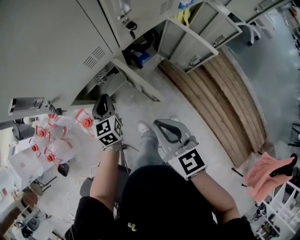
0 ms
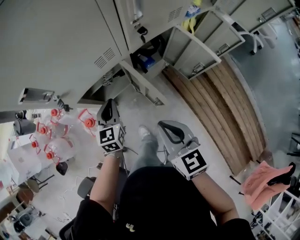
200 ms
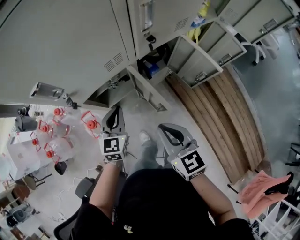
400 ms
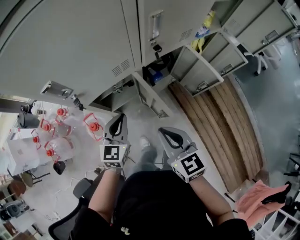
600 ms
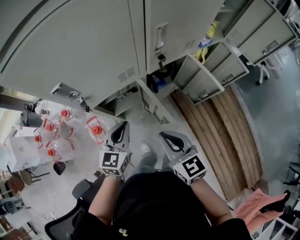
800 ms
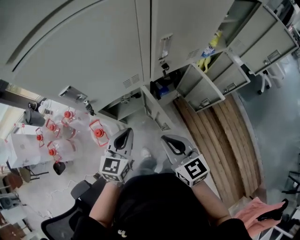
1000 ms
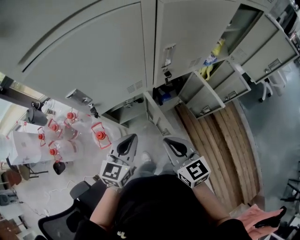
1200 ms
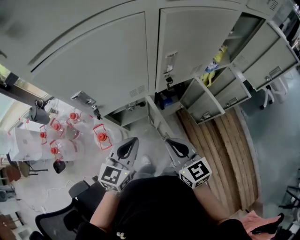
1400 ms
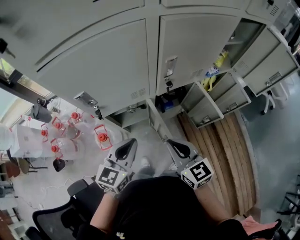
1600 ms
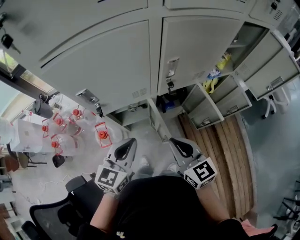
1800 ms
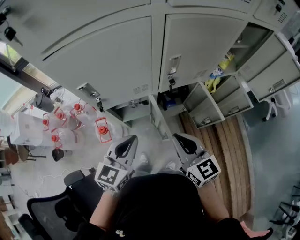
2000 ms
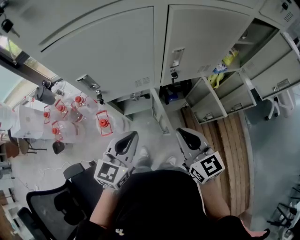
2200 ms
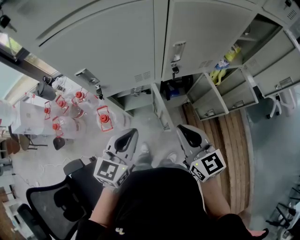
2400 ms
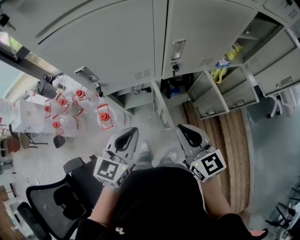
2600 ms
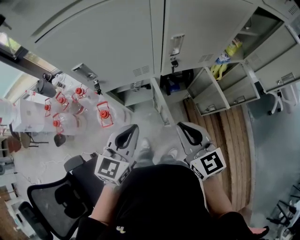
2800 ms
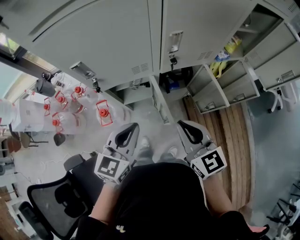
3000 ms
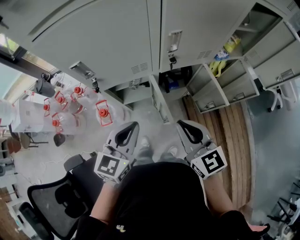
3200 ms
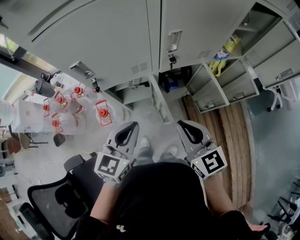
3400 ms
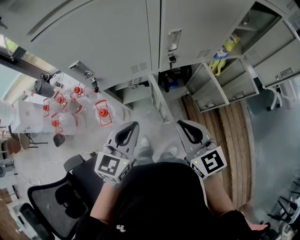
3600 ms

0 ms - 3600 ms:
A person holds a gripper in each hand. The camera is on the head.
0 ms - 1800 ms: The left gripper travels upward and backward by some 25 cm, while the right gripper heads upward, covering about 10 cm, and swivels some 20 degrees.
1800 ms - 3600 ms: The grippers make only small movements.

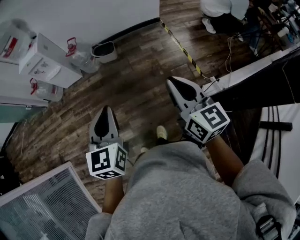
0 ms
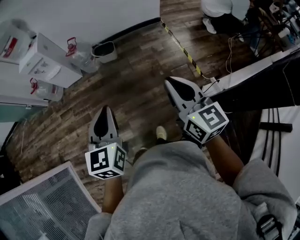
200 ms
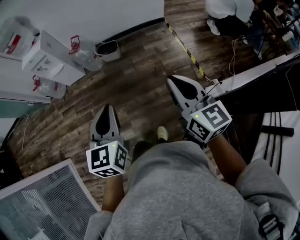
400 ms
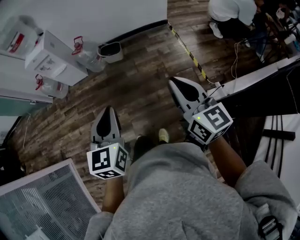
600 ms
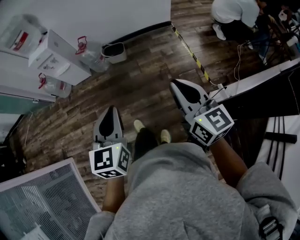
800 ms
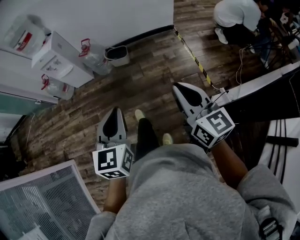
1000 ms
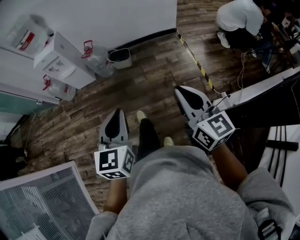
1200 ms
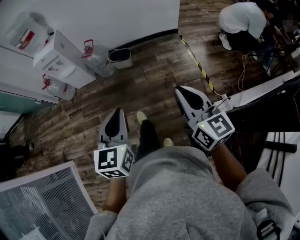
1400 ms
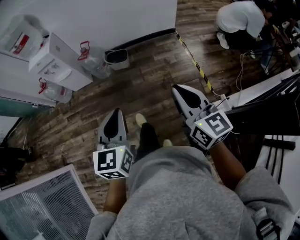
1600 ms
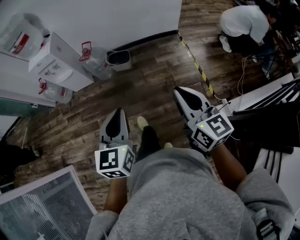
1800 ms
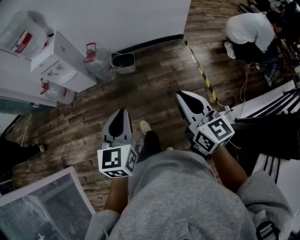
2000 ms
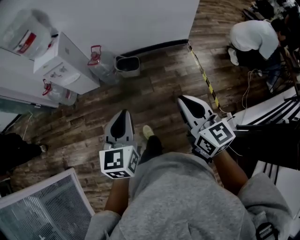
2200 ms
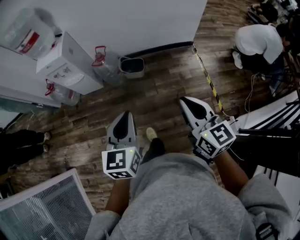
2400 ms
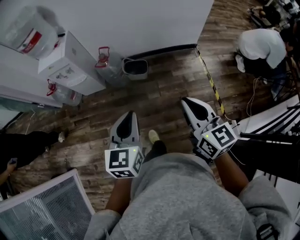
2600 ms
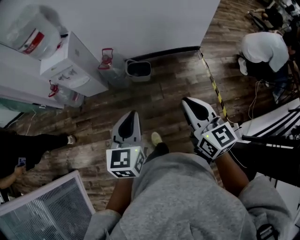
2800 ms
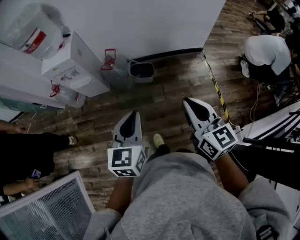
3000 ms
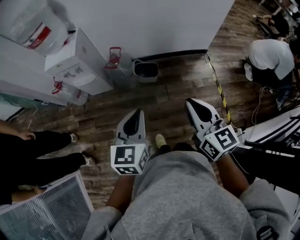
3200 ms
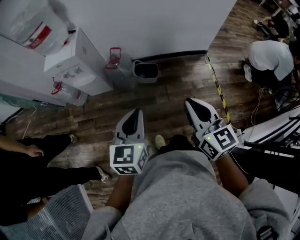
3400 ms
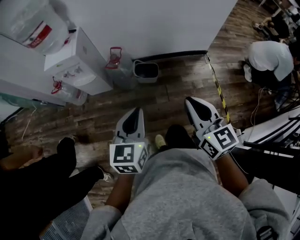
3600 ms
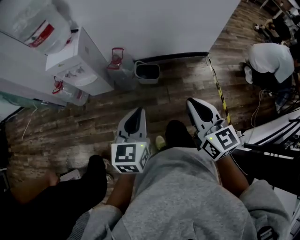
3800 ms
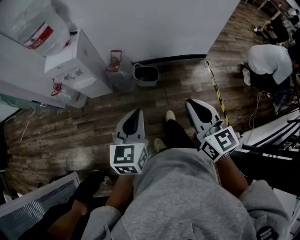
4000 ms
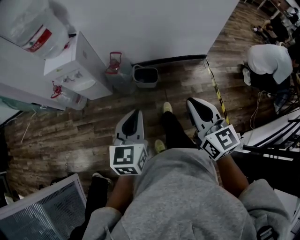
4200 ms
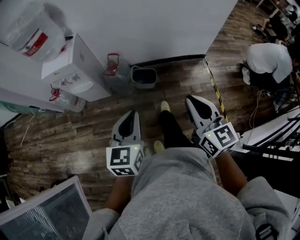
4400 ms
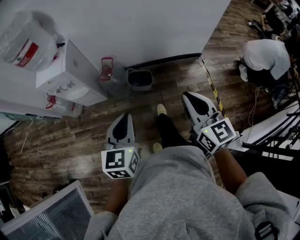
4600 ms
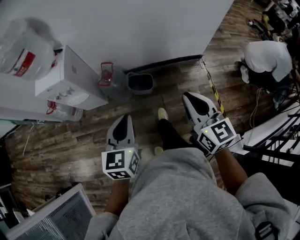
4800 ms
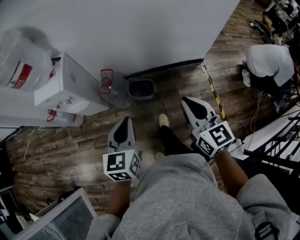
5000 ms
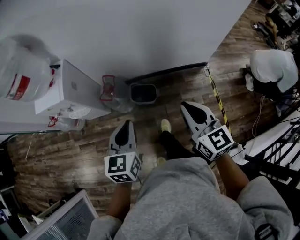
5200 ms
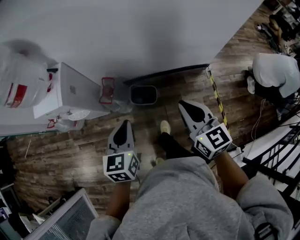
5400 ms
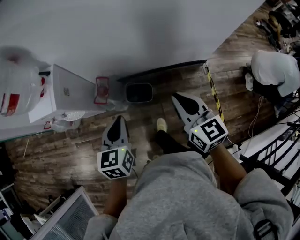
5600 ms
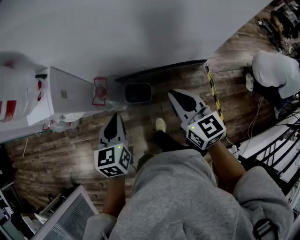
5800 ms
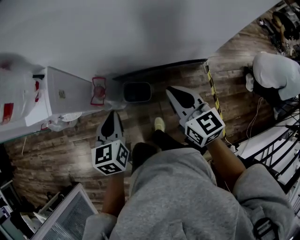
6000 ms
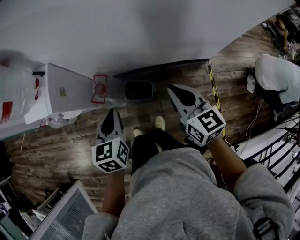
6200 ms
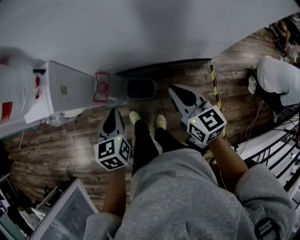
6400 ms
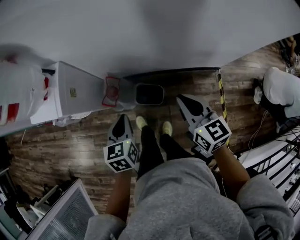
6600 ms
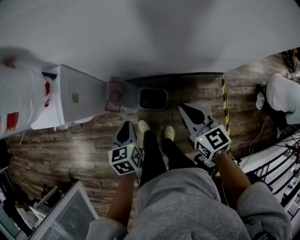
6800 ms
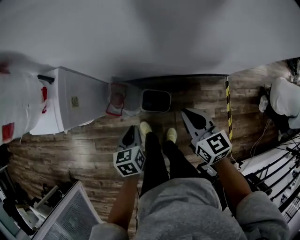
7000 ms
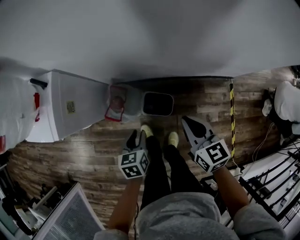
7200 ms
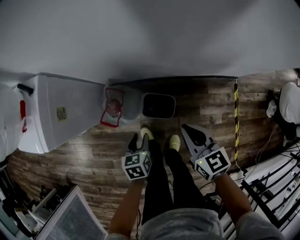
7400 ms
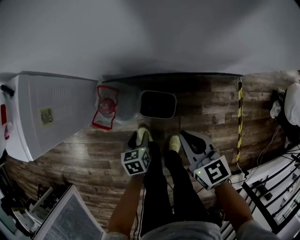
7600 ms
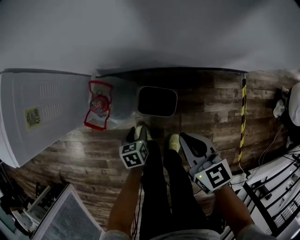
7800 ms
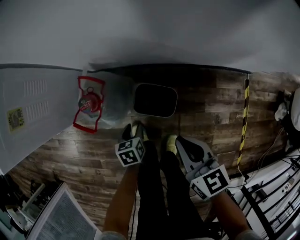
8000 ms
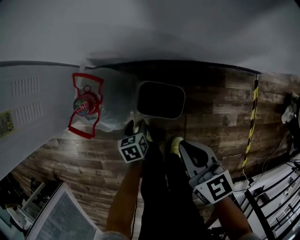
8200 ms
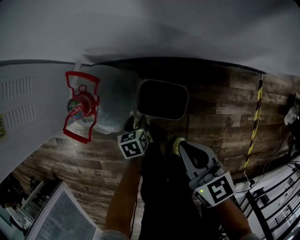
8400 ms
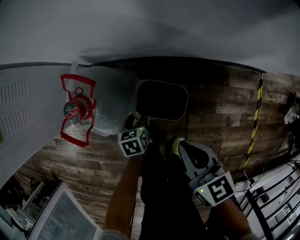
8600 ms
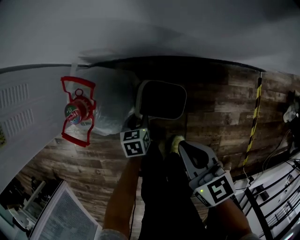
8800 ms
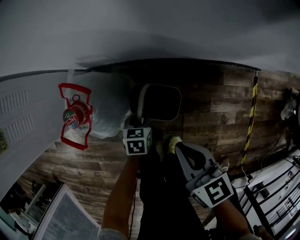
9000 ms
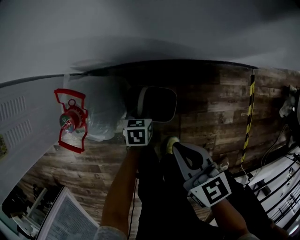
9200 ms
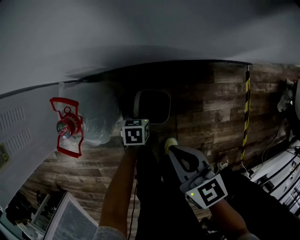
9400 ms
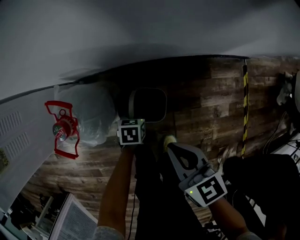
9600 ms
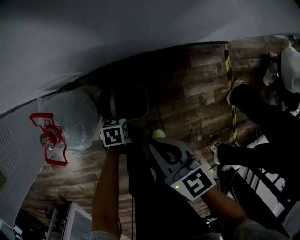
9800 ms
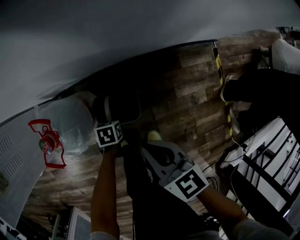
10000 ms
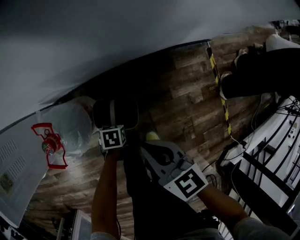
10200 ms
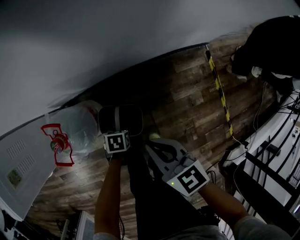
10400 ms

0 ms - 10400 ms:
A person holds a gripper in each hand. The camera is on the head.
0 ms - 1400 ms: There are only small adjustments of the grippers.
1400 ms - 3000 ms: The right gripper heads forward and to the left, covering roughly 30 cm. Meanwhile the left gripper moves forward, about 25 cm.
3000 ms - 4400 ms: The grippers both shift forward by some 5 cm.
4400 ms - 6000 ms: The grippers both shift forward by approximately 35 cm.
6000 ms - 7400 ms: The left gripper shifts some 30 cm downward, swivels roughly 20 degrees, and opens up. The right gripper goes some 25 cm downward and forward.
7400 ms - 9000 ms: Both grippers move downward, roughly 25 cm.
9000 ms - 10400 ms: The left gripper shifts by about 10 cm, turns by approximately 30 degrees, and closes up. The right gripper moves upward, some 10 cm.

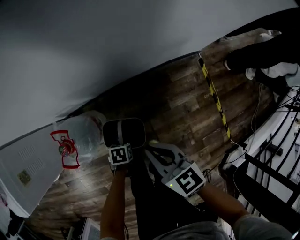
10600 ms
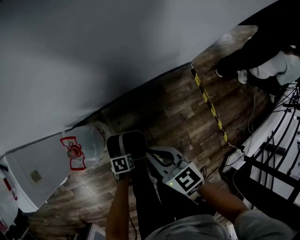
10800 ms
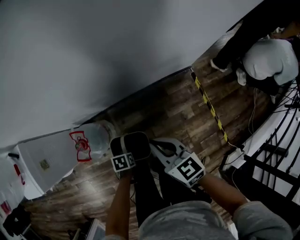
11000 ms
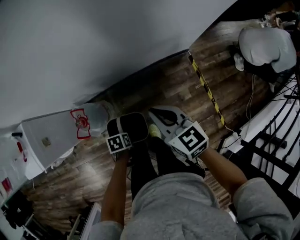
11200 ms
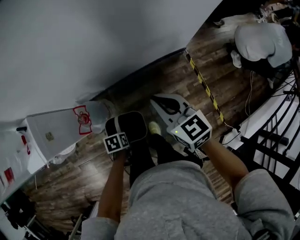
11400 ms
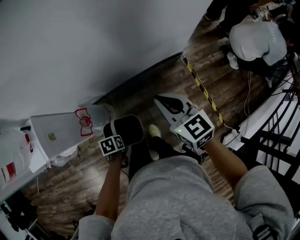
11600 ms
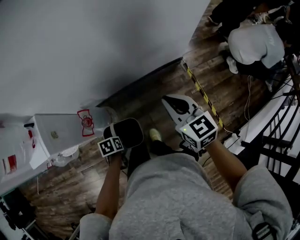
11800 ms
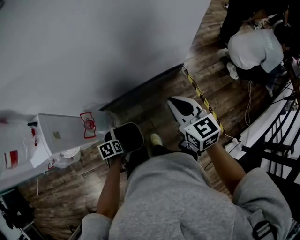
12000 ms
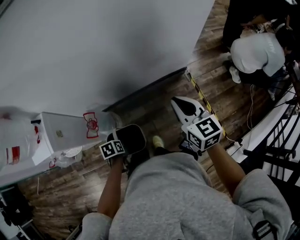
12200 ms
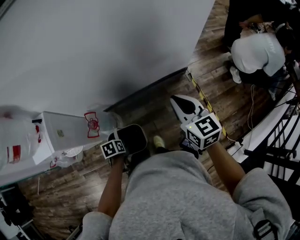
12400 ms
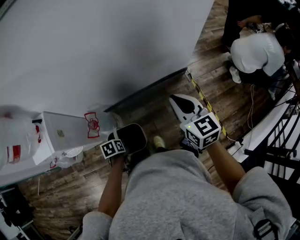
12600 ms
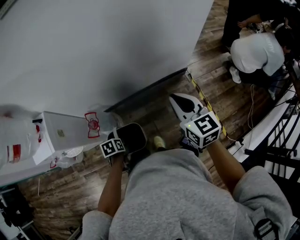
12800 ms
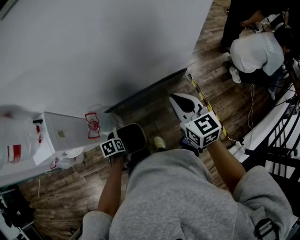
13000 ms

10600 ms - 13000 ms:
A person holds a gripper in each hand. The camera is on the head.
10600 ms - 11800 ms: The grippers both shift upward by some 30 cm.
11800 ms - 13000 ms: The grippers move only a little.

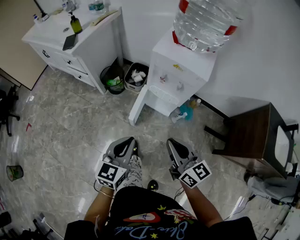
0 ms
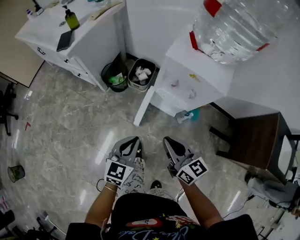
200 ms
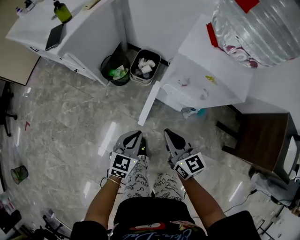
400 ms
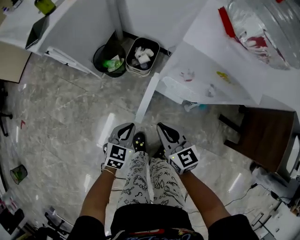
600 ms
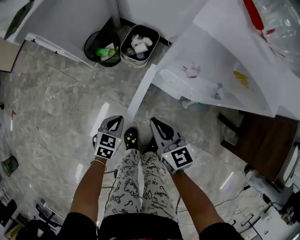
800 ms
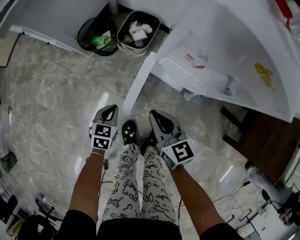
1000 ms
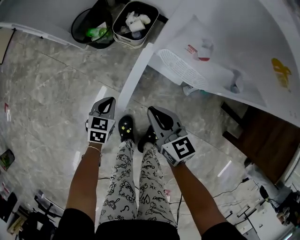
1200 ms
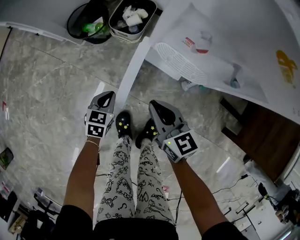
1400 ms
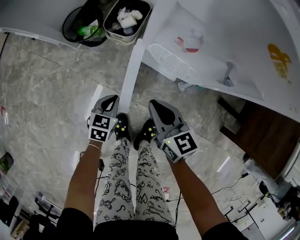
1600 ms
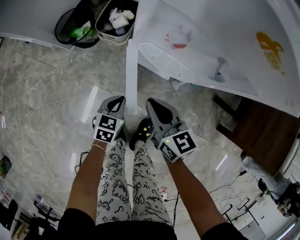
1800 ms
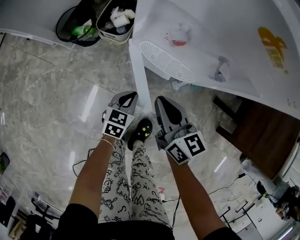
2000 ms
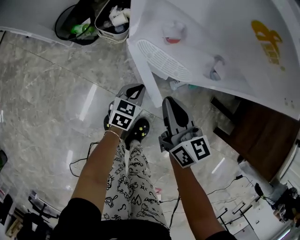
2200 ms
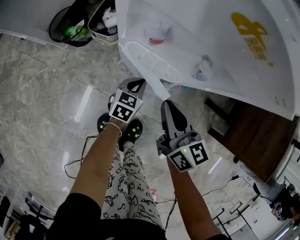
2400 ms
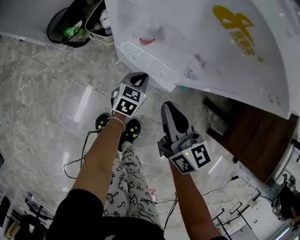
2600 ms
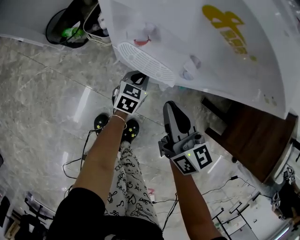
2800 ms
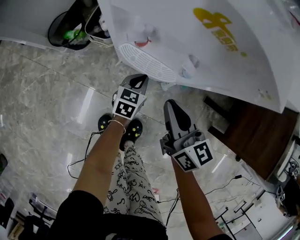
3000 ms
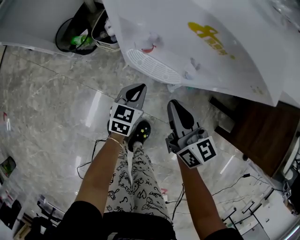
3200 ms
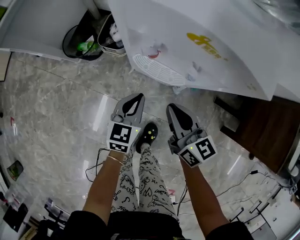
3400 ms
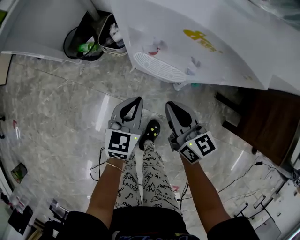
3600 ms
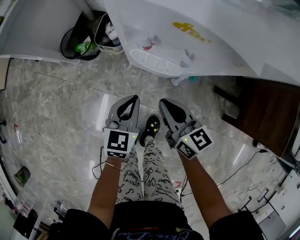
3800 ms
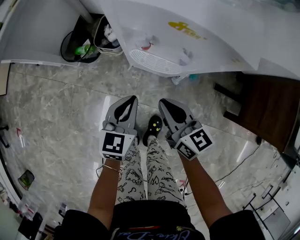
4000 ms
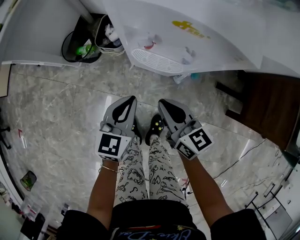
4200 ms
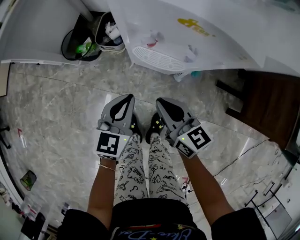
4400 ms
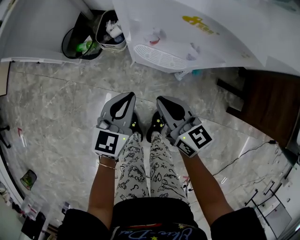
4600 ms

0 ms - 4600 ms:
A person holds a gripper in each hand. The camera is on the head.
0 ms - 1600 ms: Both grippers travel together downward and forward, roughly 40 cm. The left gripper changes its angle by roughly 30 degrees.
1600 ms - 3000 ms: The left gripper travels to the right and forward by approximately 25 cm. The right gripper shifts roughly 15 cm to the right and upward.
3000 ms - 4600 ms: The left gripper travels upward and to the left by some 25 cm, while the right gripper moves to the left, approximately 10 cm.

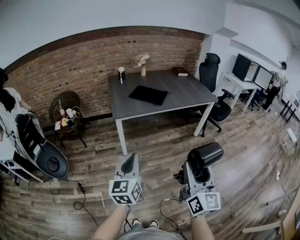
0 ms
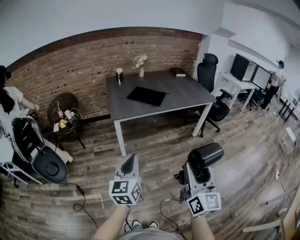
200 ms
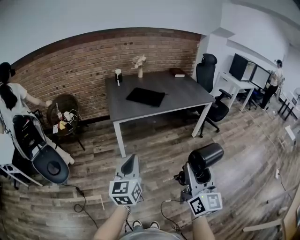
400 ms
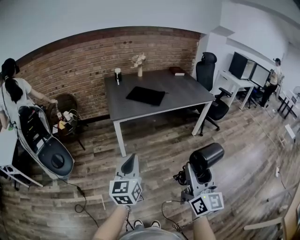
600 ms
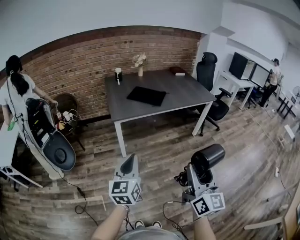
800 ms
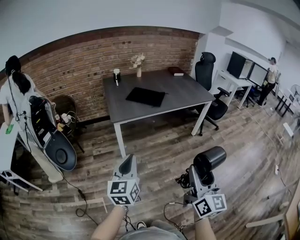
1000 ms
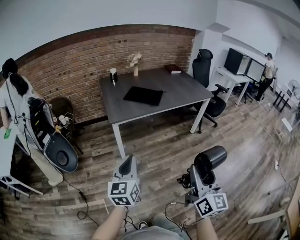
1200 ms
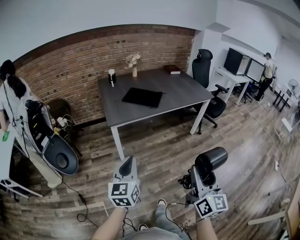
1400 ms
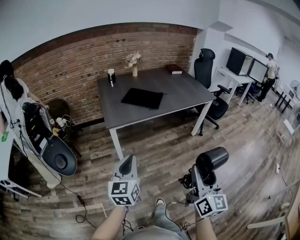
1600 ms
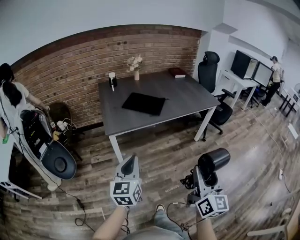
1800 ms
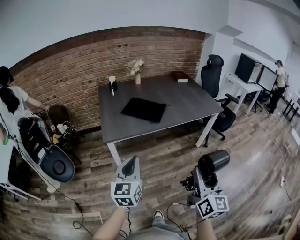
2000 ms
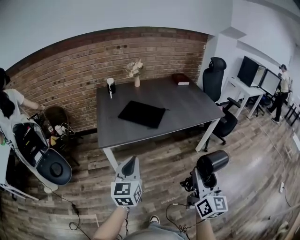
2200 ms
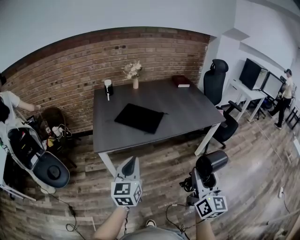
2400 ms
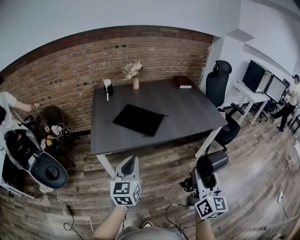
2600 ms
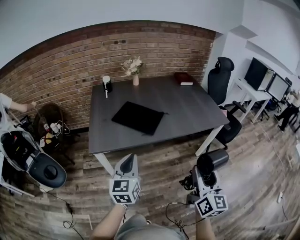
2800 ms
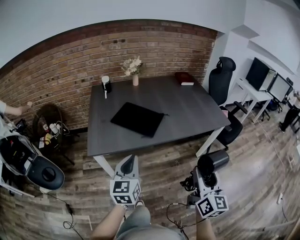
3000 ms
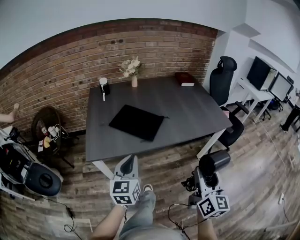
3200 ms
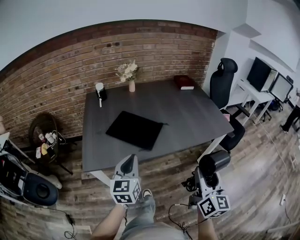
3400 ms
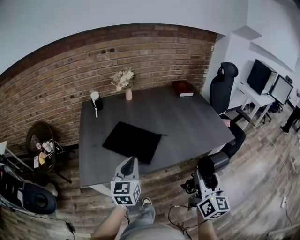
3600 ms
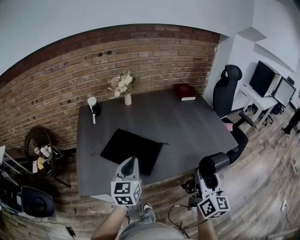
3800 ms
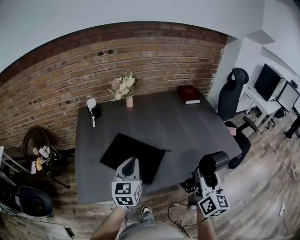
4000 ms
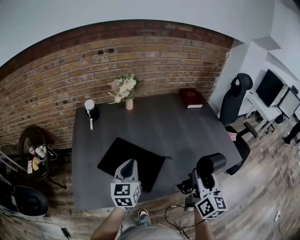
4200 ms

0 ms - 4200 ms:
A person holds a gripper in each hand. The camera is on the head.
0 ms - 1400 ms: The right gripper changes place by approximately 5 cm. Meanwhile the left gripper moves forward, about 5 cm.
1400 ms - 2800 ms: The two grippers go about 35 cm forward.
2800 ms - 4200 ms: The two grippers go approximately 40 cm forward.
